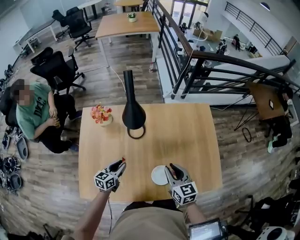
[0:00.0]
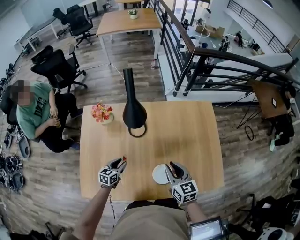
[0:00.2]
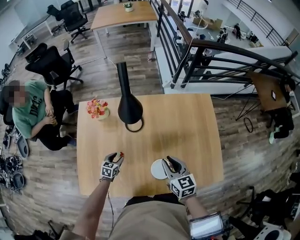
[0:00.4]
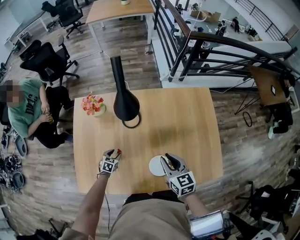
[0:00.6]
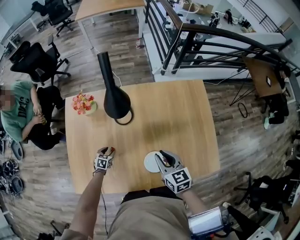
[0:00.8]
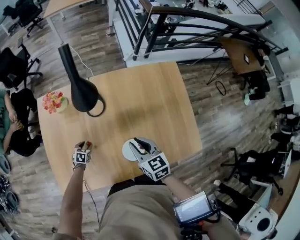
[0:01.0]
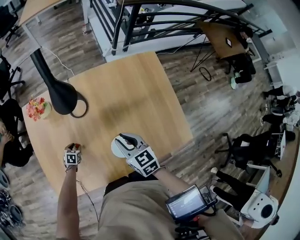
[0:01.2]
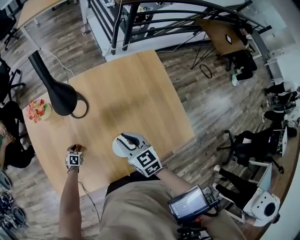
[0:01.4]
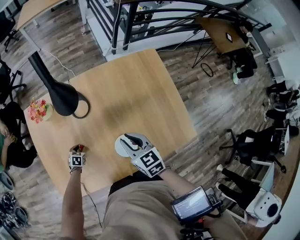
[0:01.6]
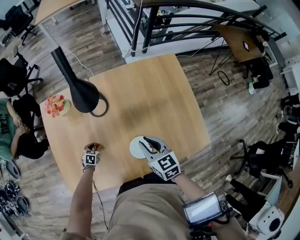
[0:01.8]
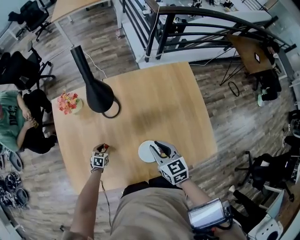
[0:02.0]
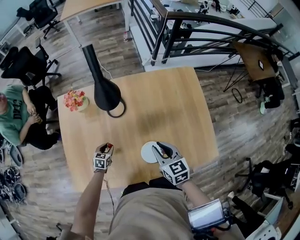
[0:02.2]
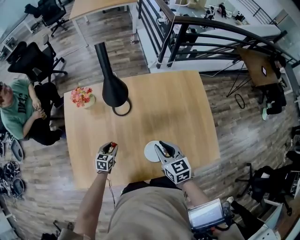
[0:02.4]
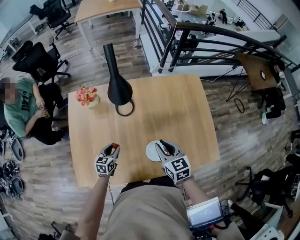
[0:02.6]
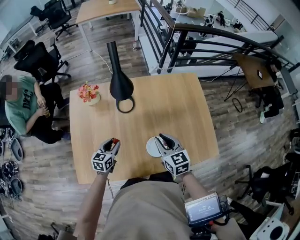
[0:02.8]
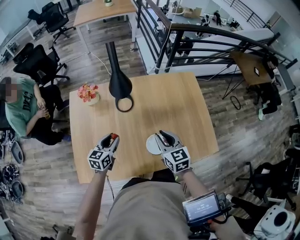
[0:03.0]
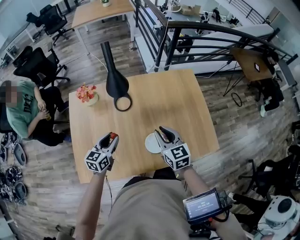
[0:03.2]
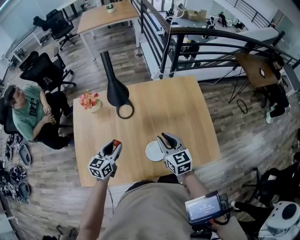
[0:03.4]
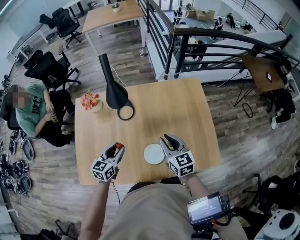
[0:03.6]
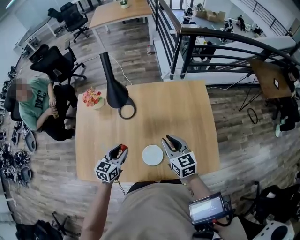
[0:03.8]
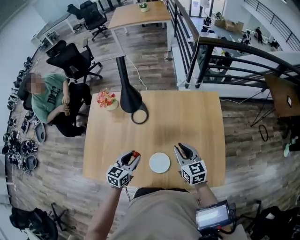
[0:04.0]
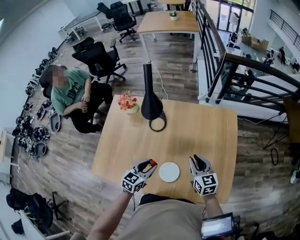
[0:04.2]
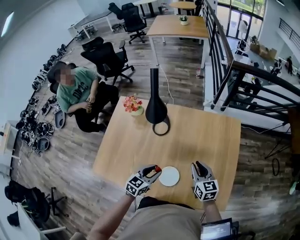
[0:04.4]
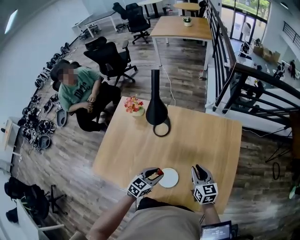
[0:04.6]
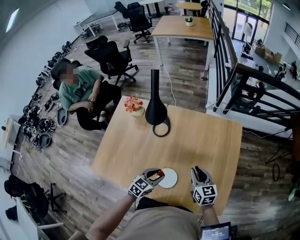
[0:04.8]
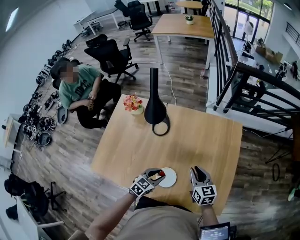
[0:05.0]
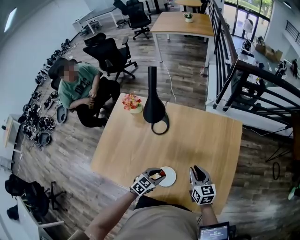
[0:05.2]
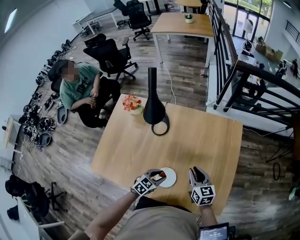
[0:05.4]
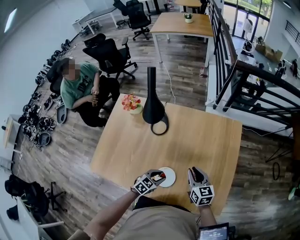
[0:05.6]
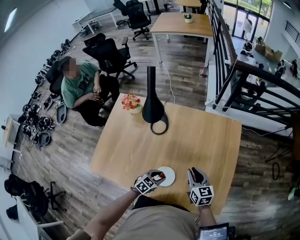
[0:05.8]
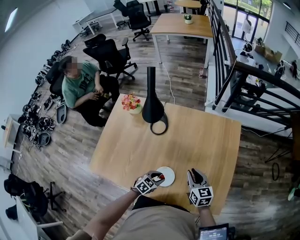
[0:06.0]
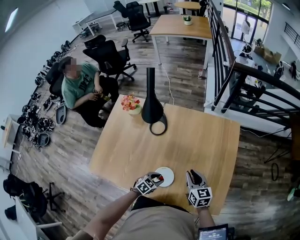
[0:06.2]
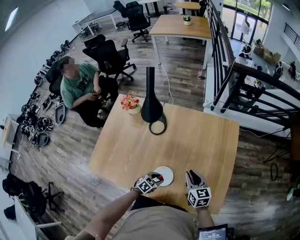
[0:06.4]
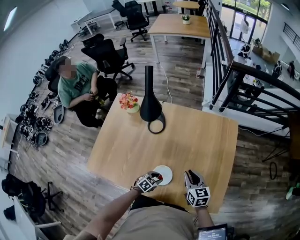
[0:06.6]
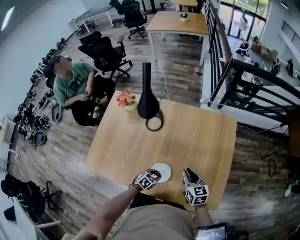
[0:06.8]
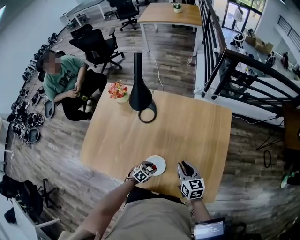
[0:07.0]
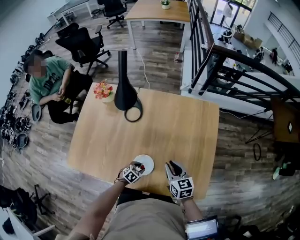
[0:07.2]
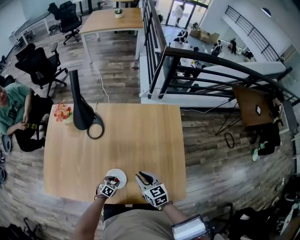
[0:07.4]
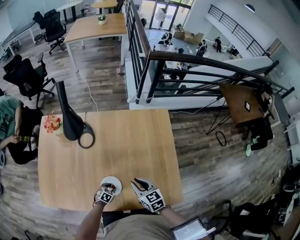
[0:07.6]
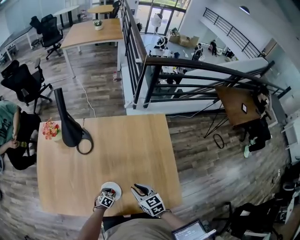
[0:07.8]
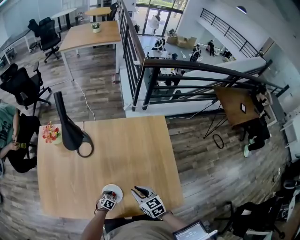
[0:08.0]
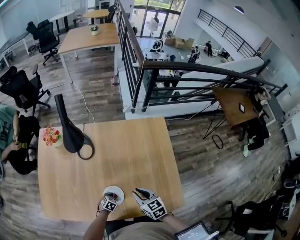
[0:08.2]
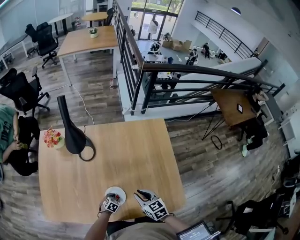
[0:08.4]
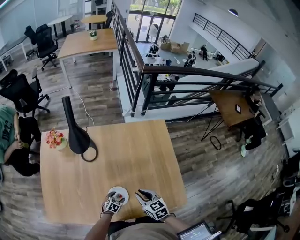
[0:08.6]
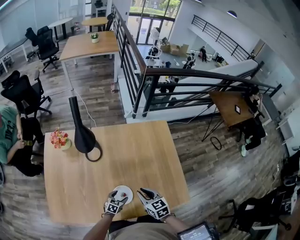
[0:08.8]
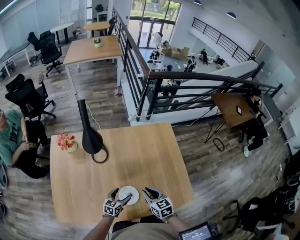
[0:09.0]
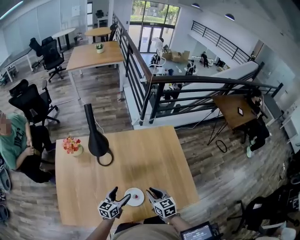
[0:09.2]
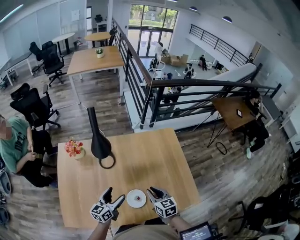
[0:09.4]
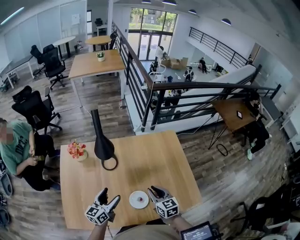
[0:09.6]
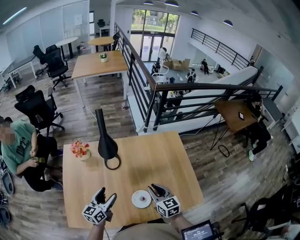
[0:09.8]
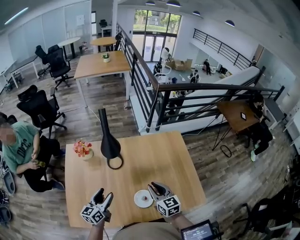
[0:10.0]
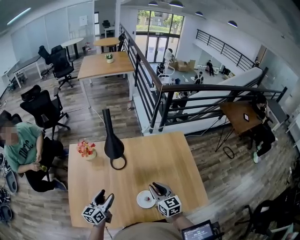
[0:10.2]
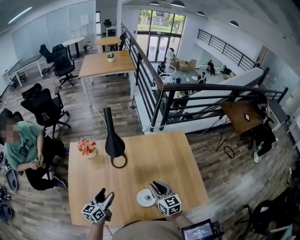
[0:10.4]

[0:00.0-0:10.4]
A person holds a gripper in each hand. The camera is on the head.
0:00.0 to 0:01.4: The left gripper shifts roughly 25 cm downward, and angles its fingers downward, by approximately 40 degrees. Meanwhile the right gripper is displaced downward by roughly 5 cm.
0:01.4 to 0:03.0: The right gripper shifts about 10 cm upward and backward, while the left gripper travels upward by roughly 30 cm, and angles its fingers upward, by about 40 degrees.
0:03.0 to 0:04.4: The left gripper moves to the right, roughly 20 cm; the right gripper is displaced to the right and forward by approximately 15 cm.
0:04.4 to 0:06.0: The right gripper changes place by roughly 5 cm; the left gripper travels downward by about 15 cm, and turns by approximately 20 degrees.
0:06.0 to 0:07.4: The left gripper moves downward, approximately 10 cm.
0:07.4 to 0:09.0: The right gripper goes approximately 5 cm to the left, while the left gripper goes roughly 10 cm upward, tilts its fingers about 30 degrees upward, and opens.
0:09.0 to 0:10.4: The right gripper travels upward and to the left by approximately 10 cm. The left gripper moves to the left and upward, approximately 30 cm, and changes its angle by some 30 degrees.

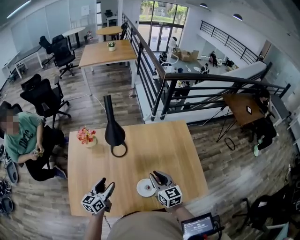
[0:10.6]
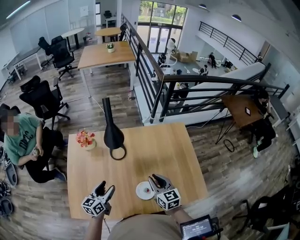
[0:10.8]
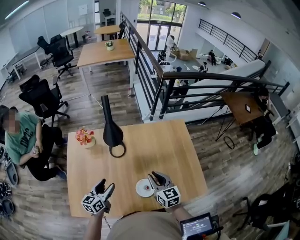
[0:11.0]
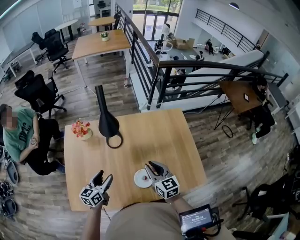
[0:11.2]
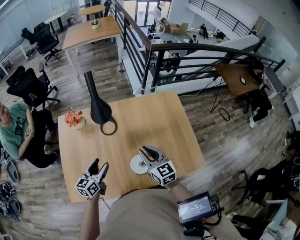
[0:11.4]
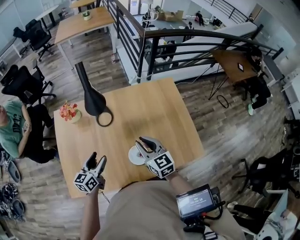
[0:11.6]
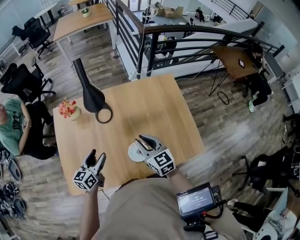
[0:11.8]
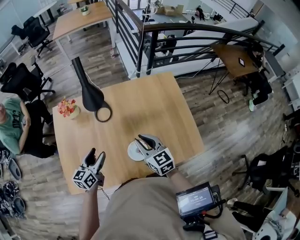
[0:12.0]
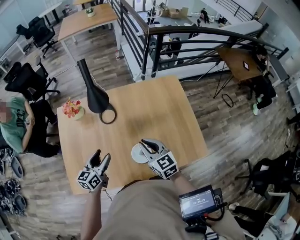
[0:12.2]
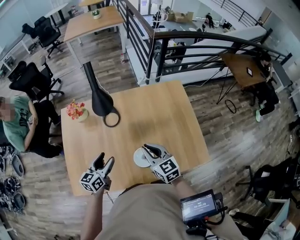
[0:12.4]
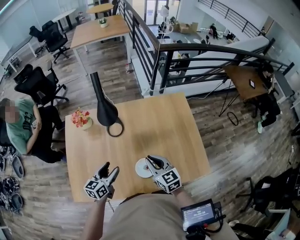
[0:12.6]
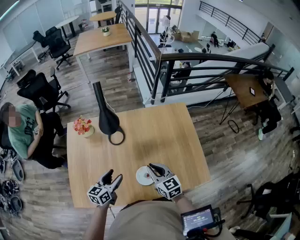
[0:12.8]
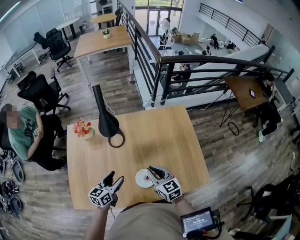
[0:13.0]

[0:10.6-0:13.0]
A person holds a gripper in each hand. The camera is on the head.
0:10.6 to 0:11.8: There are only small adjustments of the grippers.
0:11.8 to 0:13.0: The grippers make only small movements.

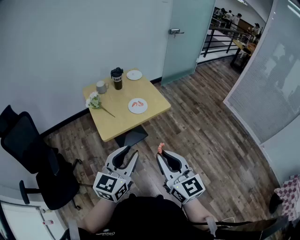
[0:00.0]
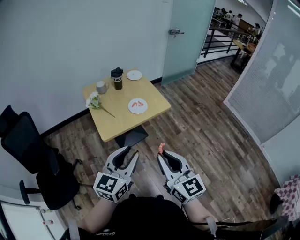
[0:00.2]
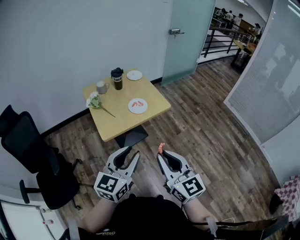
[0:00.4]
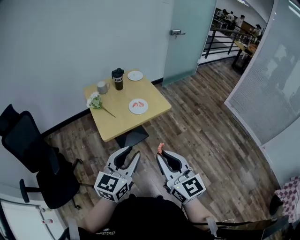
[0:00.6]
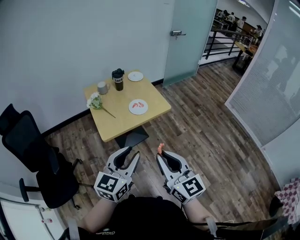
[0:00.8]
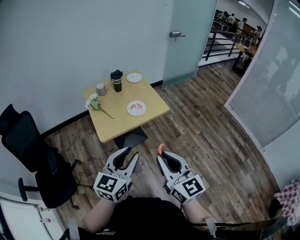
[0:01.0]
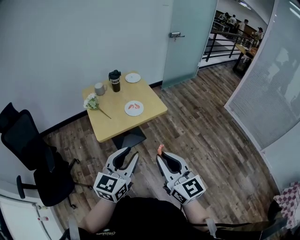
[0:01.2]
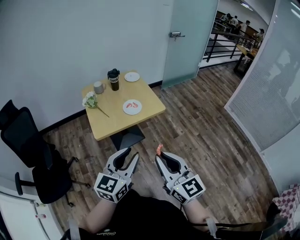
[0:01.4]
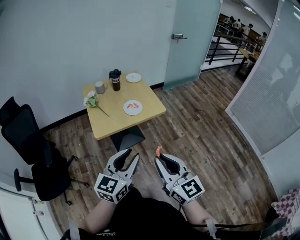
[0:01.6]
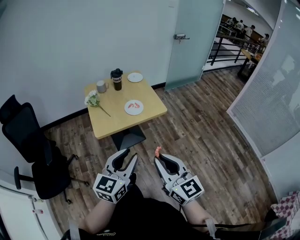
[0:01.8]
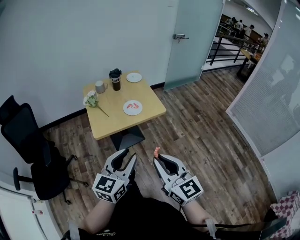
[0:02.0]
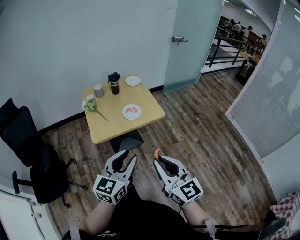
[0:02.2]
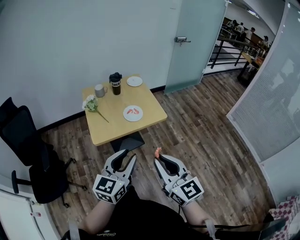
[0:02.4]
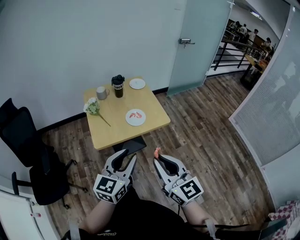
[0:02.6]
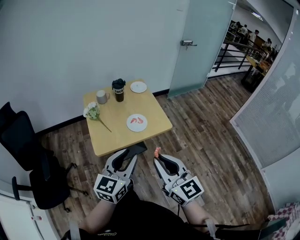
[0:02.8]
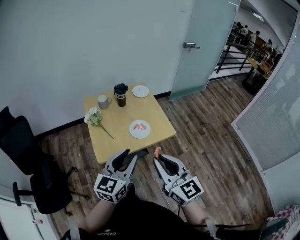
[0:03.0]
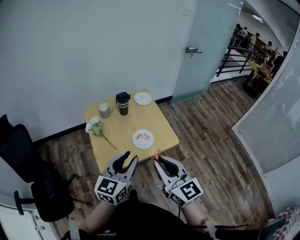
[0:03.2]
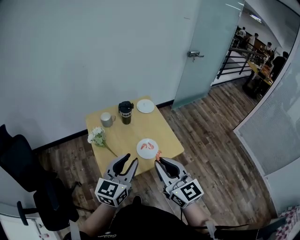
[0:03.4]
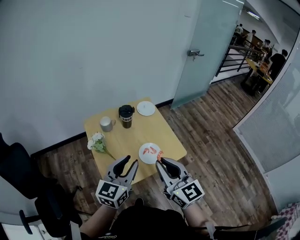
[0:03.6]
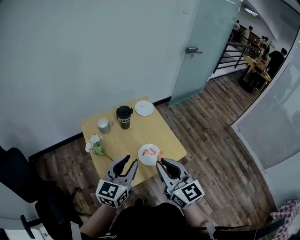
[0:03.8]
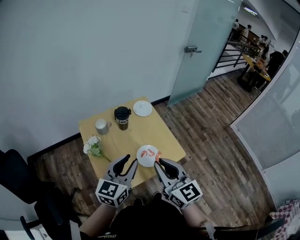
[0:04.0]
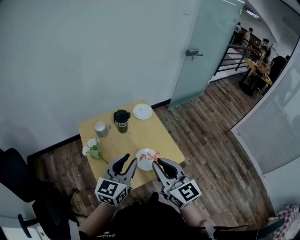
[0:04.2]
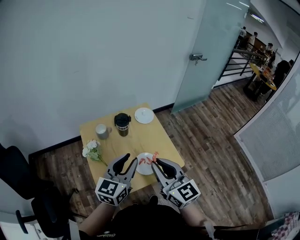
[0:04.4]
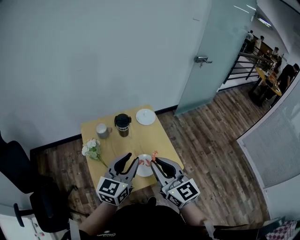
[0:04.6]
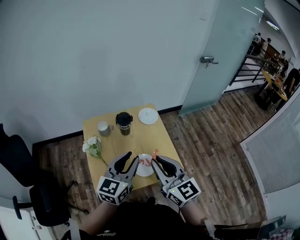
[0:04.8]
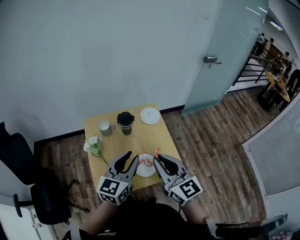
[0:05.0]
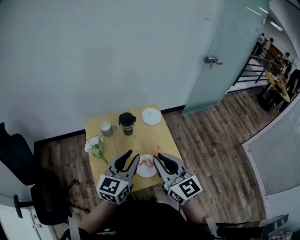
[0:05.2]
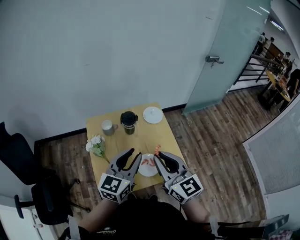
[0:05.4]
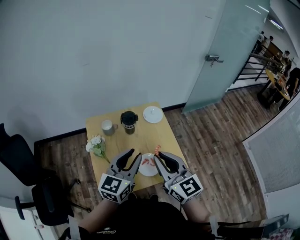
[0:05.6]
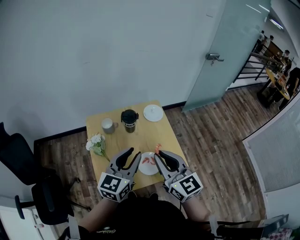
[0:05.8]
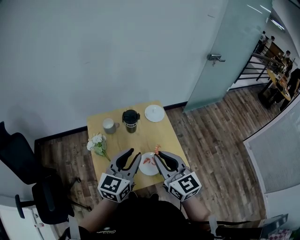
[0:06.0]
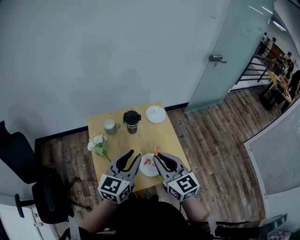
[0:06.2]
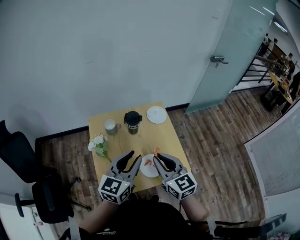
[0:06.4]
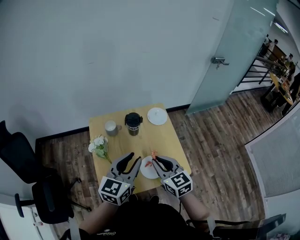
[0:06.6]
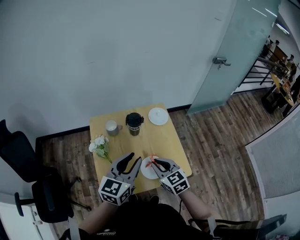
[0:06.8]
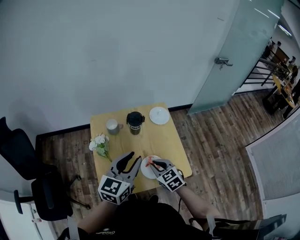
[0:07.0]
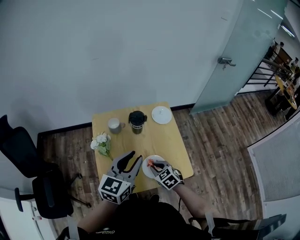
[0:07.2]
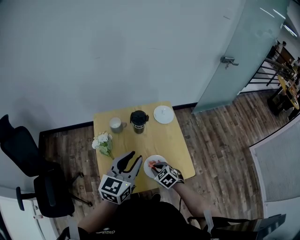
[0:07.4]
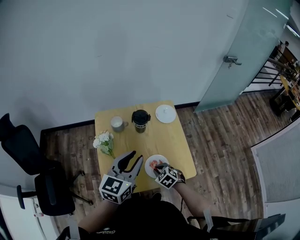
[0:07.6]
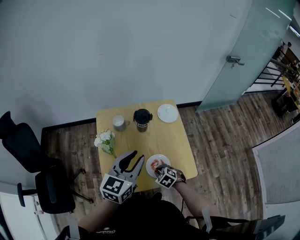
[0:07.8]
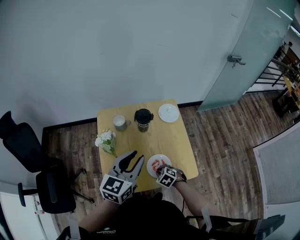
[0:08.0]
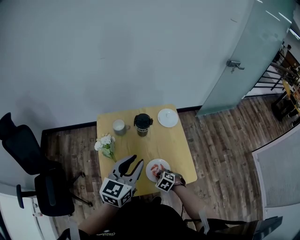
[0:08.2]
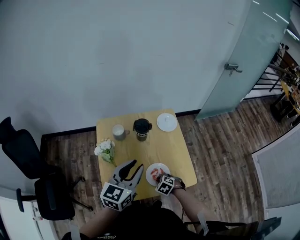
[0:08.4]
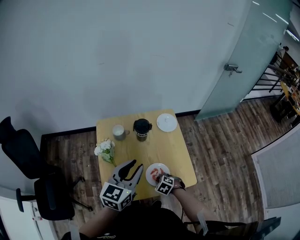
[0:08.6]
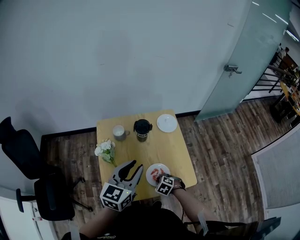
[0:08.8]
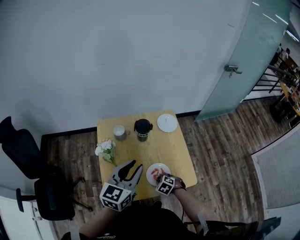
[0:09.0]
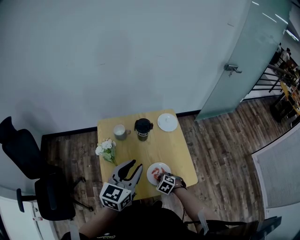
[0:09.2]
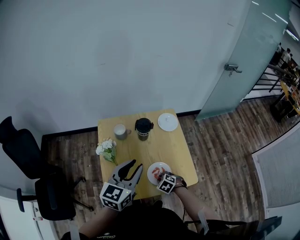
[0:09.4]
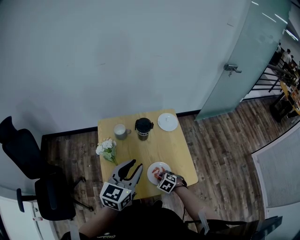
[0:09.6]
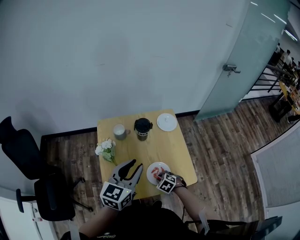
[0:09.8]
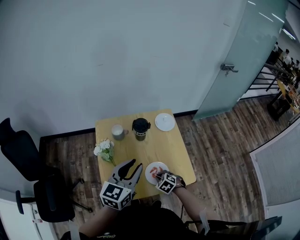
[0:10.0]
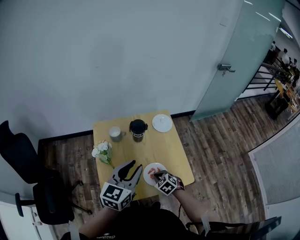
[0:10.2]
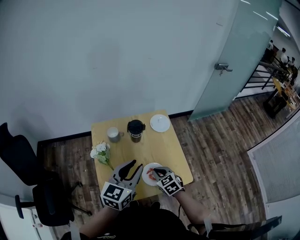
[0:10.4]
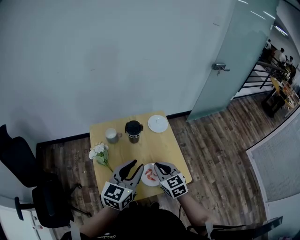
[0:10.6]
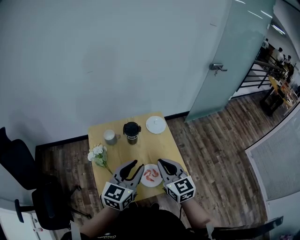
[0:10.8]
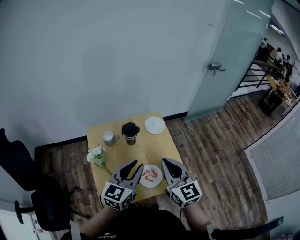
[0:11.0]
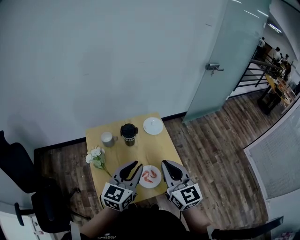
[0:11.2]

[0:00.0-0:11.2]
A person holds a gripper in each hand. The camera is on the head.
0:00.0 to 0:01.6: Both grippers travel together to the right, roughly 10 cm.
0:01.6 to 0:03.2: The two grippers go about 25 cm forward.
0:03.2 to 0:04.8: Both grippers move forward, approximately 20 cm.
0:04.8 to 0:06.4: The right gripper travels downward and forward by about 10 cm.
0:06.4 to 0:08.0: The right gripper travels downward by some 30 cm, and points its fingers about 60 degrees further downward.
0:08.0 to 0:09.6: There are only small adjustments of the grippers.
0:09.6 to 0:11.2: The left gripper is displaced to the right by roughly 5 cm. The right gripper goes some 35 cm upward, and angles its fingers upward, by roughly 70 degrees.
